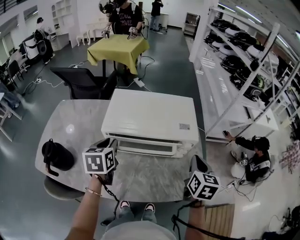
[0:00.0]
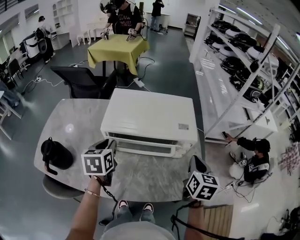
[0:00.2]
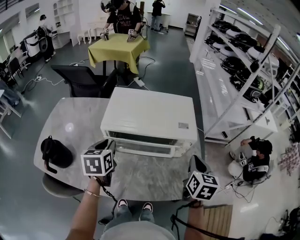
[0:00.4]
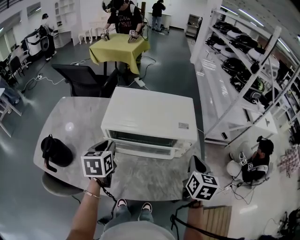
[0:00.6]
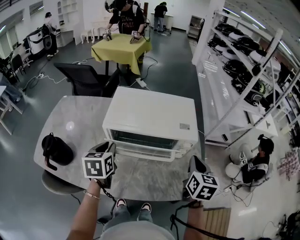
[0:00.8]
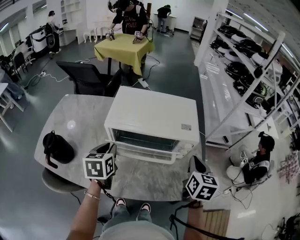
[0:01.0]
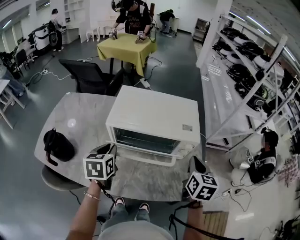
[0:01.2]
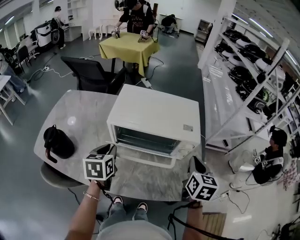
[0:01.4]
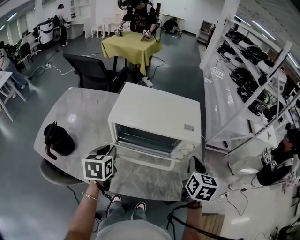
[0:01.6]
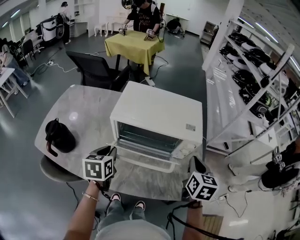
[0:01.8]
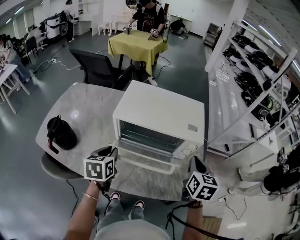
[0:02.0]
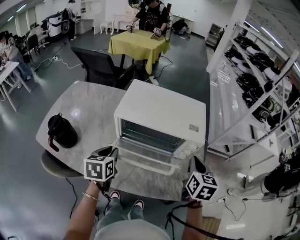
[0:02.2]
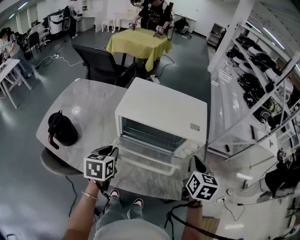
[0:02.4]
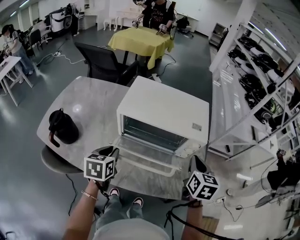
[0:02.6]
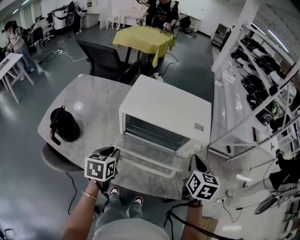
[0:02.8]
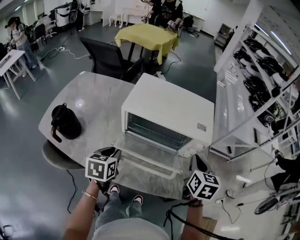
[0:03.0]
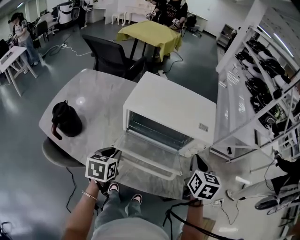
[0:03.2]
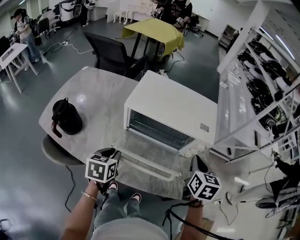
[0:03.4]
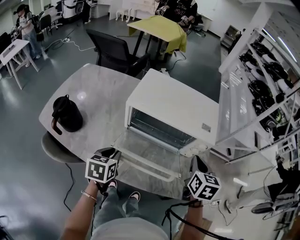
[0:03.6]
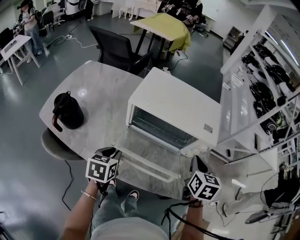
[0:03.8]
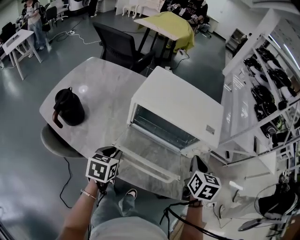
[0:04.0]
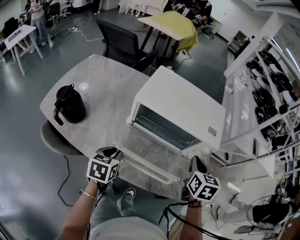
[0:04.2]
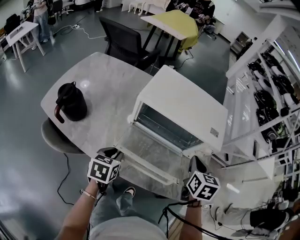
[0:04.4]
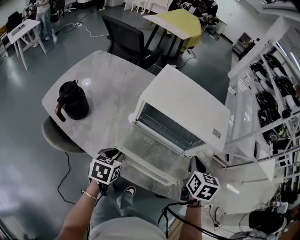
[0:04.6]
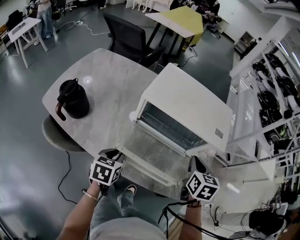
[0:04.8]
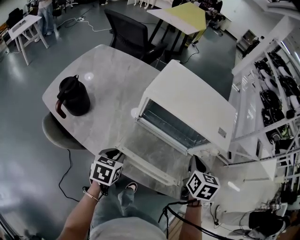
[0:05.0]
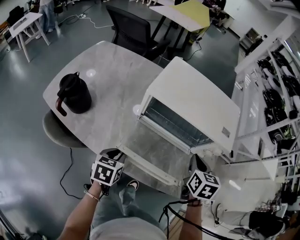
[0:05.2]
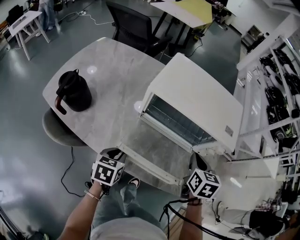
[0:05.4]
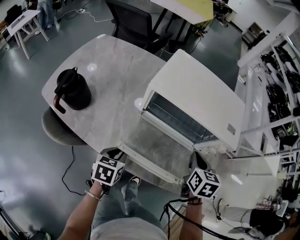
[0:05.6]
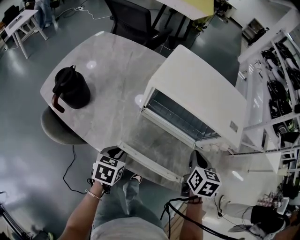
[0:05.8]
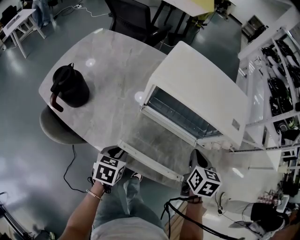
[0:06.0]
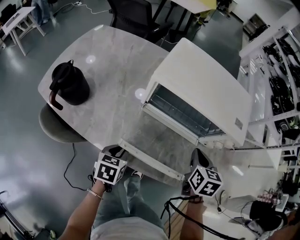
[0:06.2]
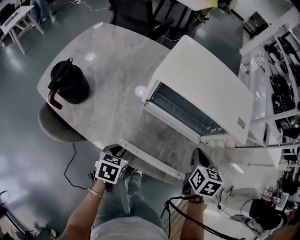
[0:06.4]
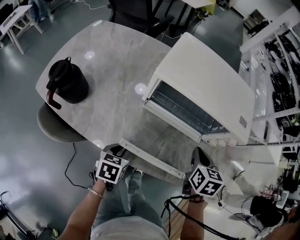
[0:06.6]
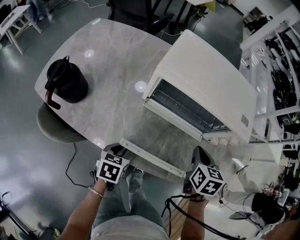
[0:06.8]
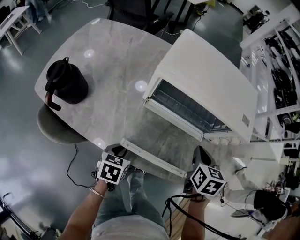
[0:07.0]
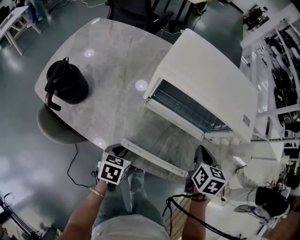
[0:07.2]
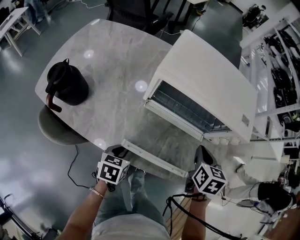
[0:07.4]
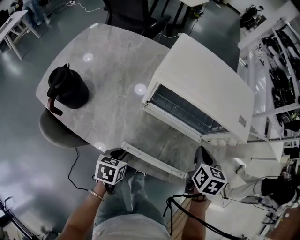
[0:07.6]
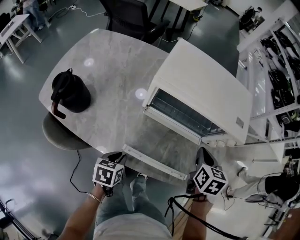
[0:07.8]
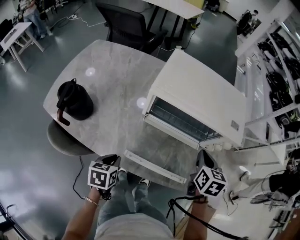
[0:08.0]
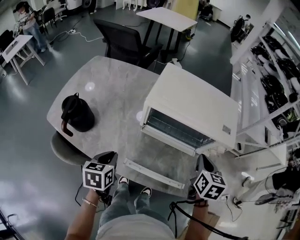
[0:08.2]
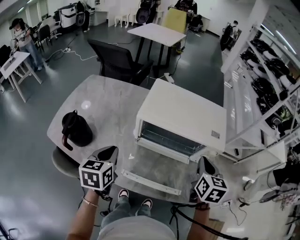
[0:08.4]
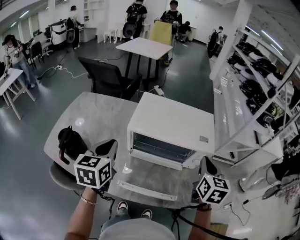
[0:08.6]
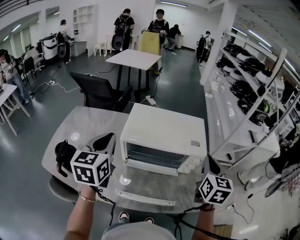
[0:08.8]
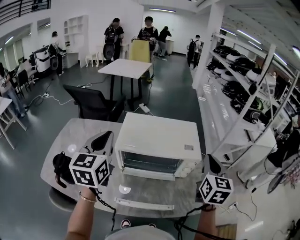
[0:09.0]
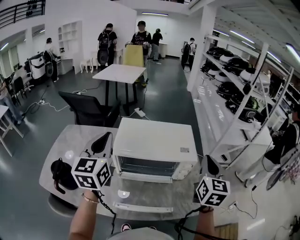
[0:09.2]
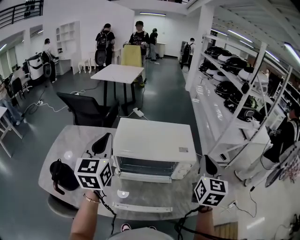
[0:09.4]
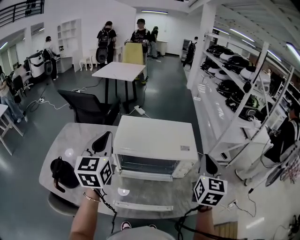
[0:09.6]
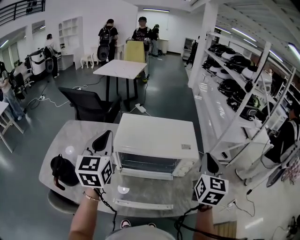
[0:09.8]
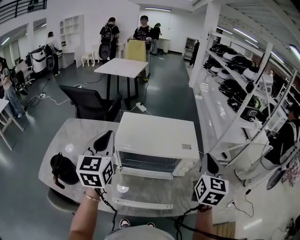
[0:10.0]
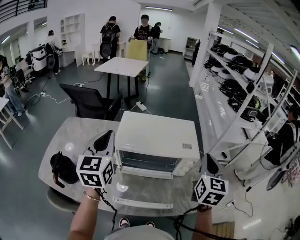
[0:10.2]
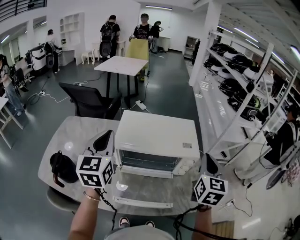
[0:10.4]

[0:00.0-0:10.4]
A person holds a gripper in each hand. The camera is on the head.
0:00.0 to 0:01.4: The left gripper shifts about 5 cm backward.
0:01.4 to 0:03.0: The left gripper moves backward, roughly 5 cm.
0:03.0 to 0:04.4: The left gripper is displaced downward by roughly 5 cm.
0:04.4 to 0:06.0: Both grippers travel together downward, some 5 cm.
0:06.0 to 0:07.4: The grippers make only small movements.
0:07.4 to 0:09.0: The left gripper travels upward and forward by about 50 cm, and tilts its fingers some 50 degrees upward. Meanwhile the right gripper moves upward and to the right, roughly 25 cm, and angles its fingers upward, by approximately 30 degrees.
0:09.0 to 0:10.4: The grippers move only a little.

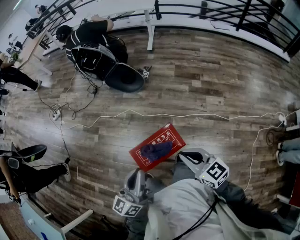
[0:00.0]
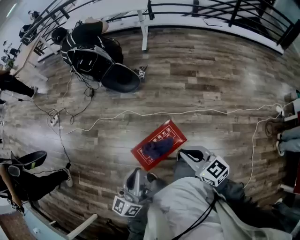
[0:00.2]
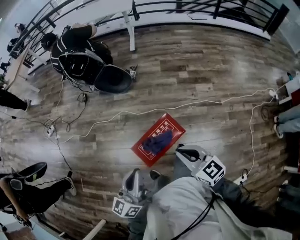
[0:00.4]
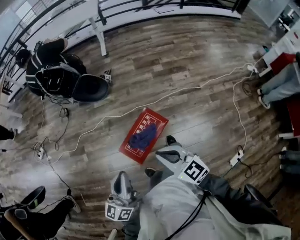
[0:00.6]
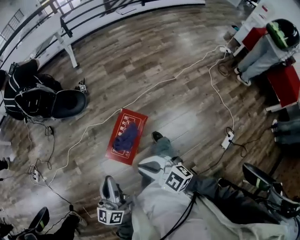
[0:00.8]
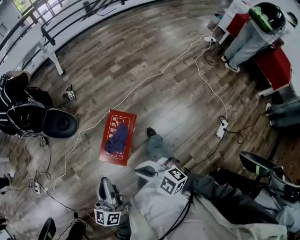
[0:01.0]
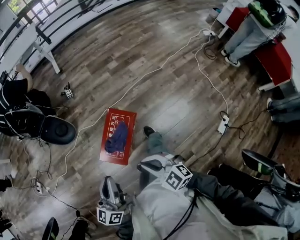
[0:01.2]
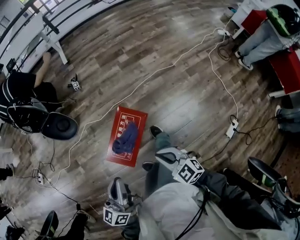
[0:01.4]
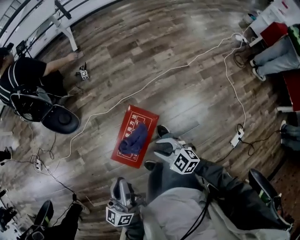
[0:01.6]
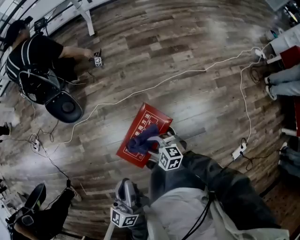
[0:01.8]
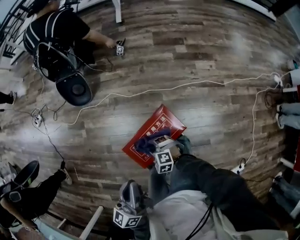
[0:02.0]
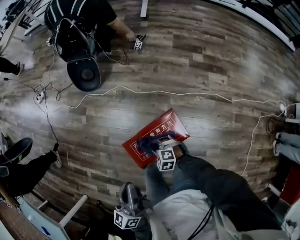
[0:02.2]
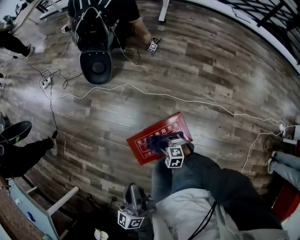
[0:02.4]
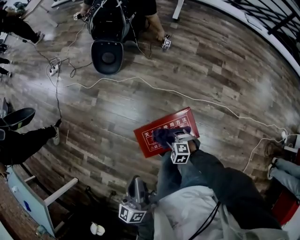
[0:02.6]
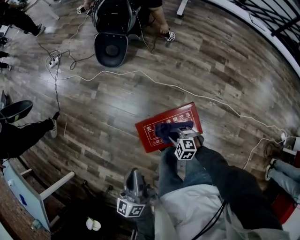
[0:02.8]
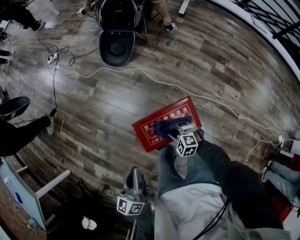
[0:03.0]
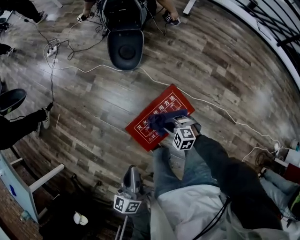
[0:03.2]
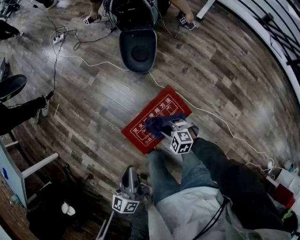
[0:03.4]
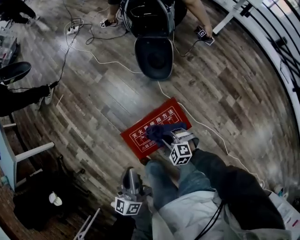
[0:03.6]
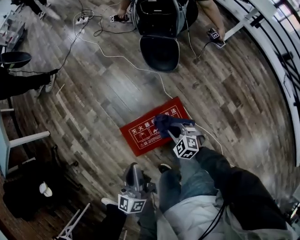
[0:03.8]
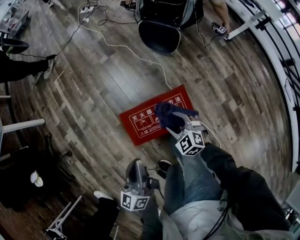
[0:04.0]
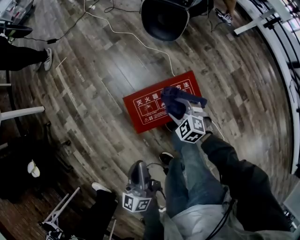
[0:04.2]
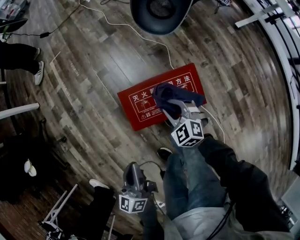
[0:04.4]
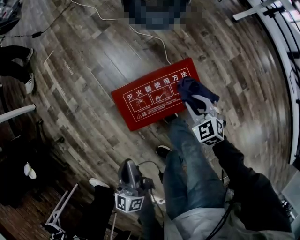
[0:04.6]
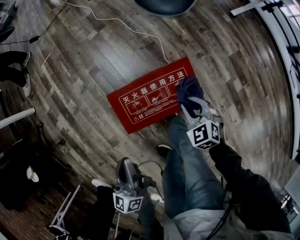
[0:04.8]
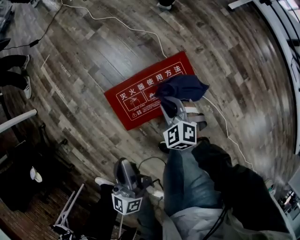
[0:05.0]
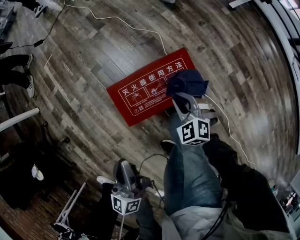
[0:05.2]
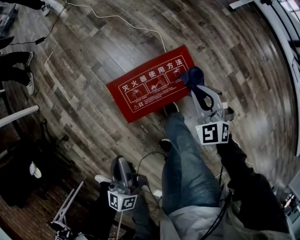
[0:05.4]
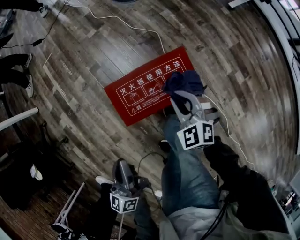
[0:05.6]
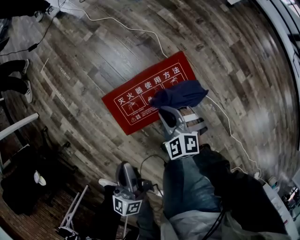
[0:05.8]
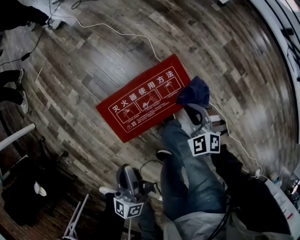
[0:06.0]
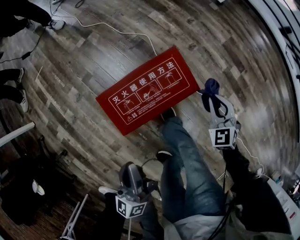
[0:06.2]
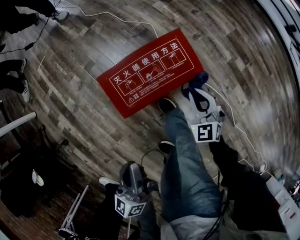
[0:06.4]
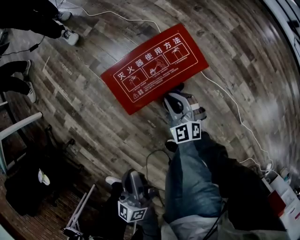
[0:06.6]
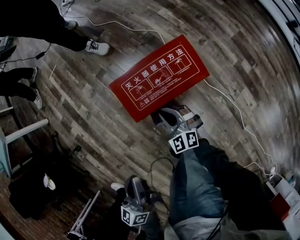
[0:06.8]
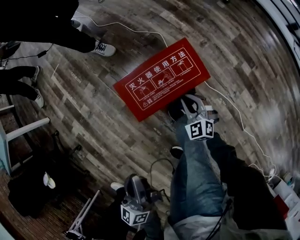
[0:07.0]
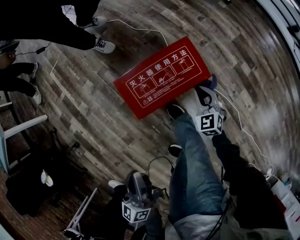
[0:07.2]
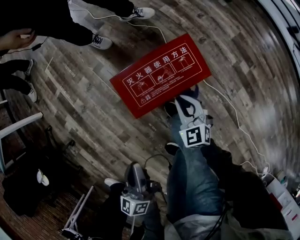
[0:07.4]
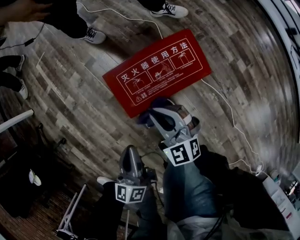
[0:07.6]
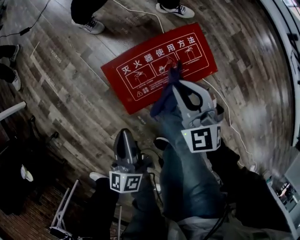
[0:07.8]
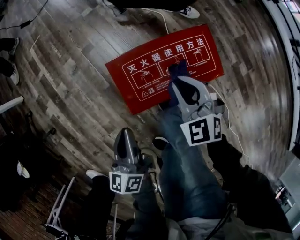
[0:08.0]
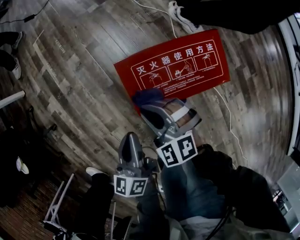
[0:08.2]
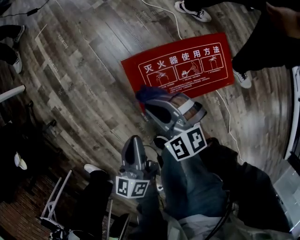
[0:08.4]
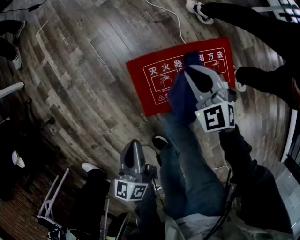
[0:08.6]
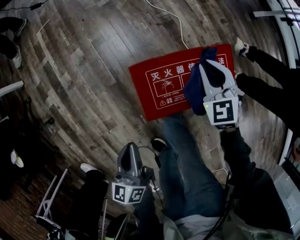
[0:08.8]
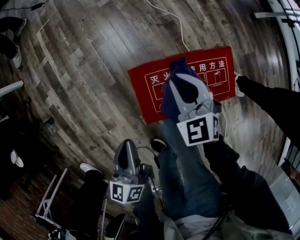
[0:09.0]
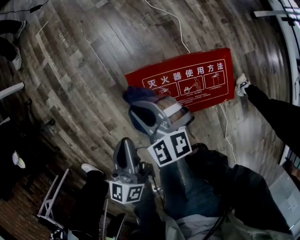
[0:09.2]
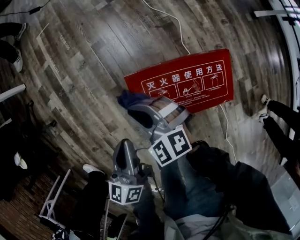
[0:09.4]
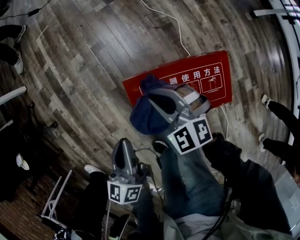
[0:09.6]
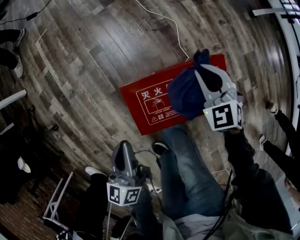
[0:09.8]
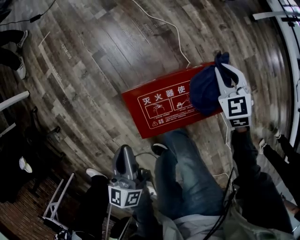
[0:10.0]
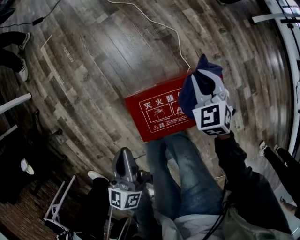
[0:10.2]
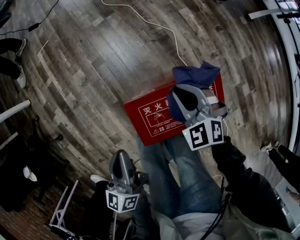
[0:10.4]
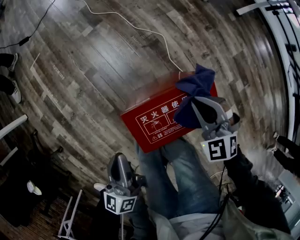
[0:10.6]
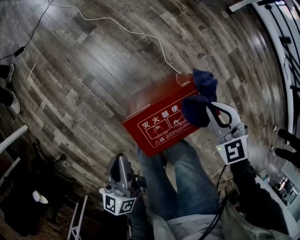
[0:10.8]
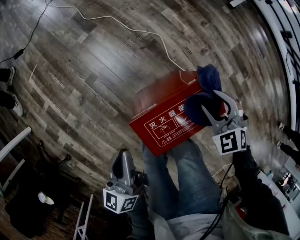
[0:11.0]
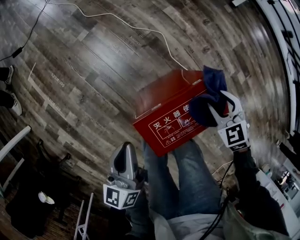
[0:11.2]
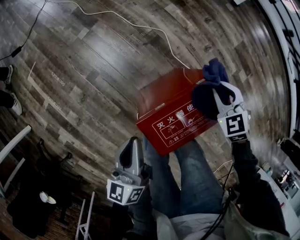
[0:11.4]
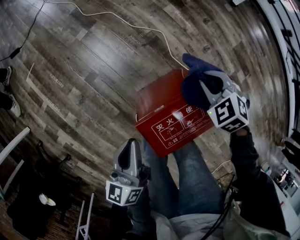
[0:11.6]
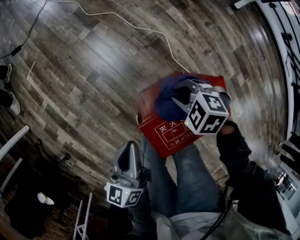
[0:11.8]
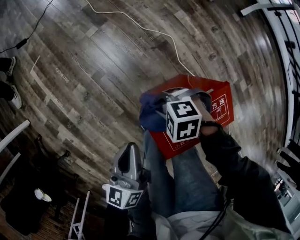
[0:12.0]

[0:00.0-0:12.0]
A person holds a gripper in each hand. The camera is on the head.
0:00.0 to 0:01.6: The right gripper shifts roughly 20 cm downward, rotates about 20 degrees, and opens its fingers. The left gripper travels downward by approximately 10 cm, and swivels approximately 20 degrees.
0:01.6 to 0:03.0: The left gripper ends up about 15 cm from where it was, and swivels about 50 degrees. Meanwhile the right gripper is displaced downward by some 20 cm, and twists some 50 degrees counterclockwise, seen from behind.
0:03.0 to 0:04.4: The left gripper travels backward and downward by some 20 cm, and turns by about 40 degrees, while the right gripper moves forward and to the right, some 10 cm, and opens, then closes once more.
0:04.4 to 0:06.0: The left gripper heads forward, covering about 5 cm. The right gripper swings left and right, approximately 15 cm each way, with 4 reversals.
0:06.0 to 0:07.6: The right gripper goes left and right, approximately 30 cm each way, reversing 3 times, and changes its angle by some 30 degrees. Meanwhile the left gripper goes some 10 cm downward and backward.
0:07.6 to 0:09.0: The left gripper shifts some 5 cm forward, while the right gripper swings left and right, some 20 cm each way, with 3 reversals.
0:09.0 to 0:10.4: The left gripper moves approximately 10 cm.
0:10.4 to 0:12.0: The right gripper ends up roughly 15 cm from where it was, rotates some 40 degrees, and opens and closes again. Meanwhile the left gripper shifts by some 15 cm.

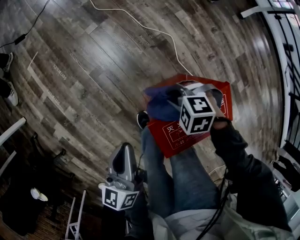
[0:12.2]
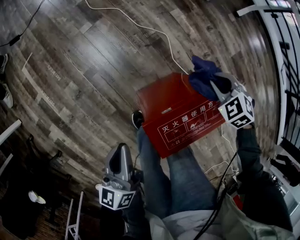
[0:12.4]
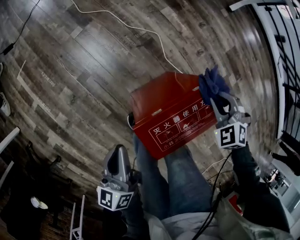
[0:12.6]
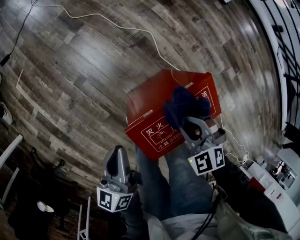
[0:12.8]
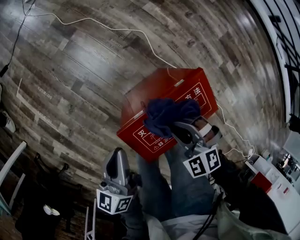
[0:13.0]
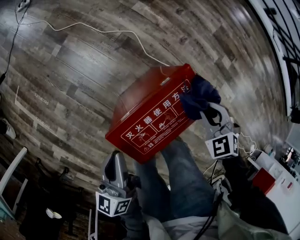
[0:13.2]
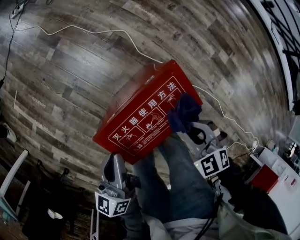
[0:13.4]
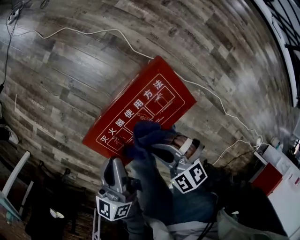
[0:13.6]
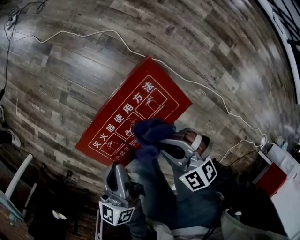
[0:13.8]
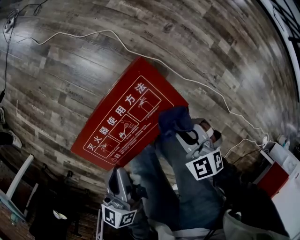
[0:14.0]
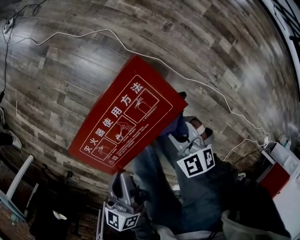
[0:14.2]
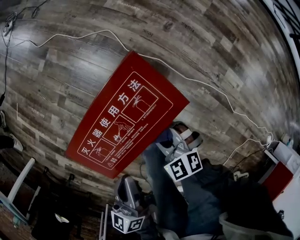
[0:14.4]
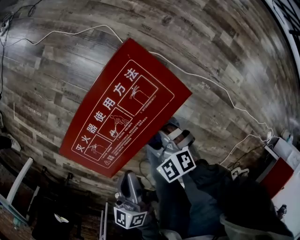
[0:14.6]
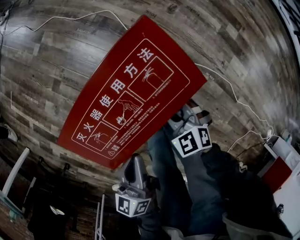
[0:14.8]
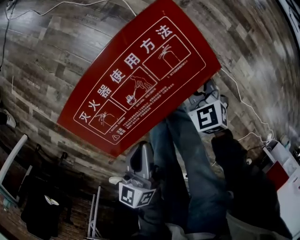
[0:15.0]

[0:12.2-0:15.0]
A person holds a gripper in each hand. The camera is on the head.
0:12.2 to 0:13.6: The left gripper shifts by about 20 cm. The right gripper changes place by roughly 25 cm, and rotates approximately 40 degrees.
0:13.6 to 0:15.0: The right gripper goes about 20 cm downward and to the right, and changes its angle by about 30 degrees. Meanwhile the left gripper moves backward and downward, some 15 cm.
